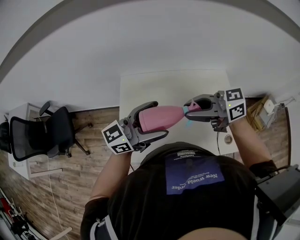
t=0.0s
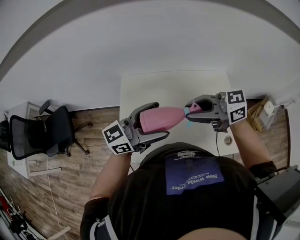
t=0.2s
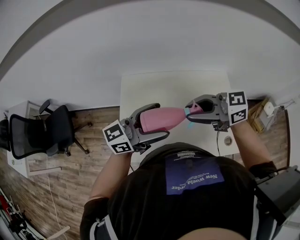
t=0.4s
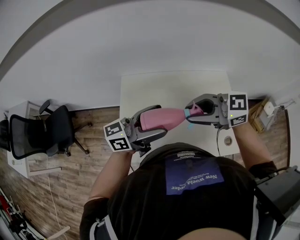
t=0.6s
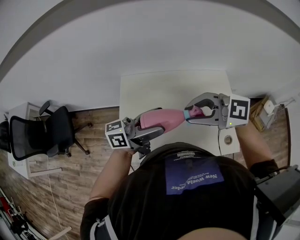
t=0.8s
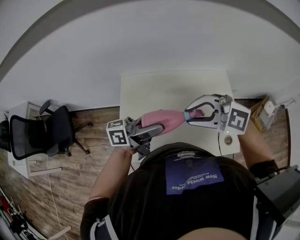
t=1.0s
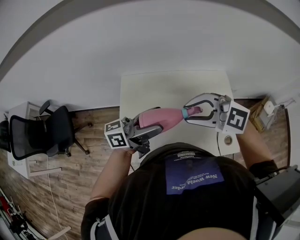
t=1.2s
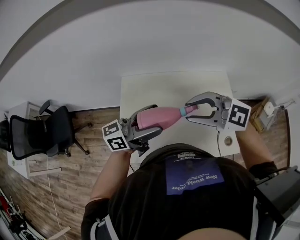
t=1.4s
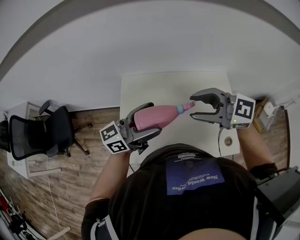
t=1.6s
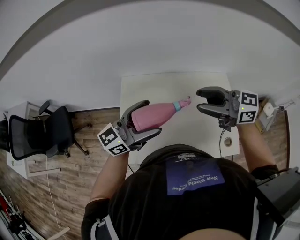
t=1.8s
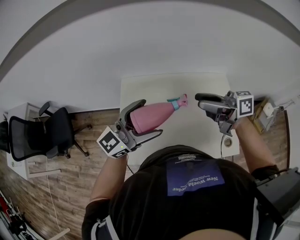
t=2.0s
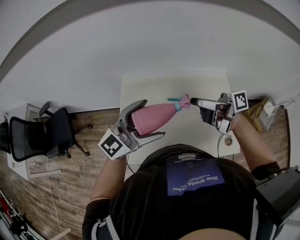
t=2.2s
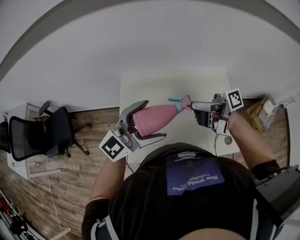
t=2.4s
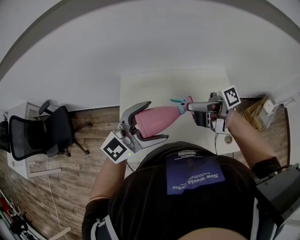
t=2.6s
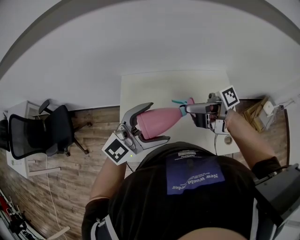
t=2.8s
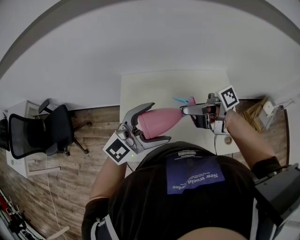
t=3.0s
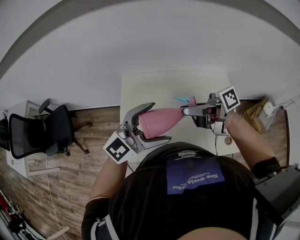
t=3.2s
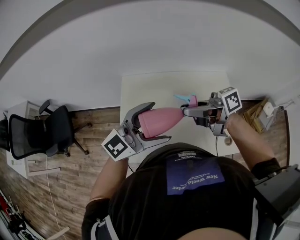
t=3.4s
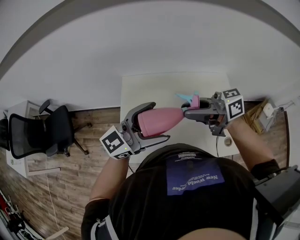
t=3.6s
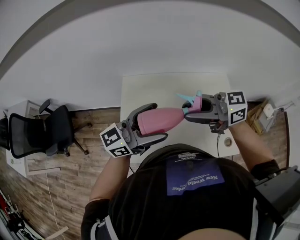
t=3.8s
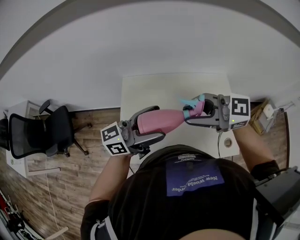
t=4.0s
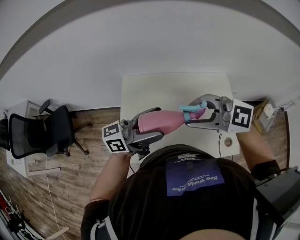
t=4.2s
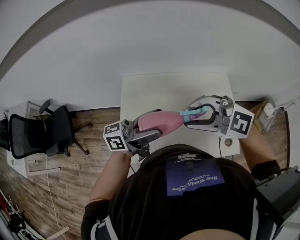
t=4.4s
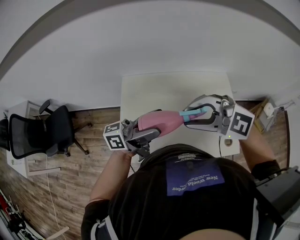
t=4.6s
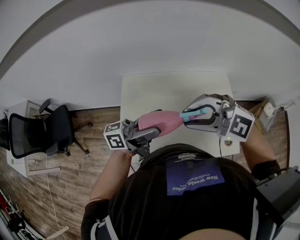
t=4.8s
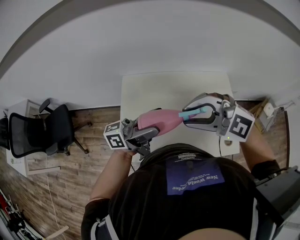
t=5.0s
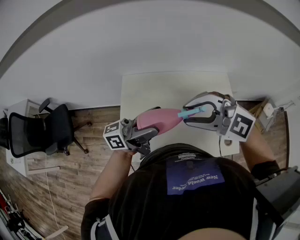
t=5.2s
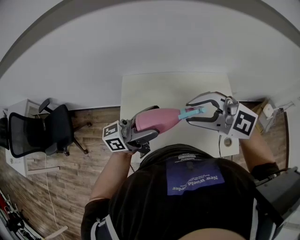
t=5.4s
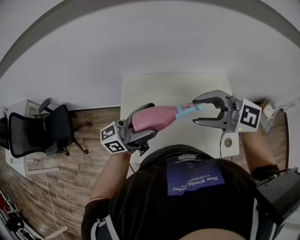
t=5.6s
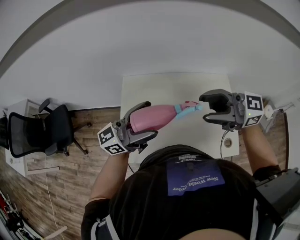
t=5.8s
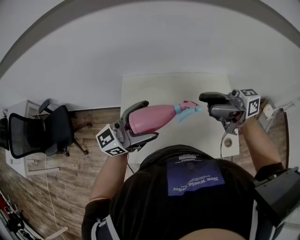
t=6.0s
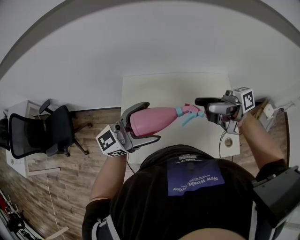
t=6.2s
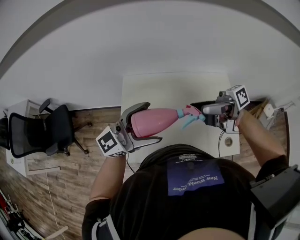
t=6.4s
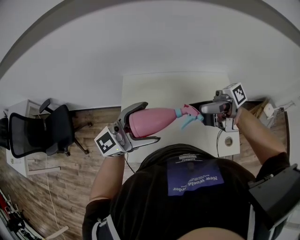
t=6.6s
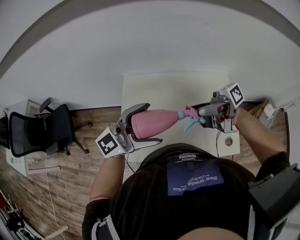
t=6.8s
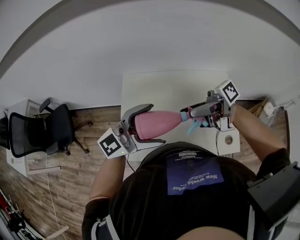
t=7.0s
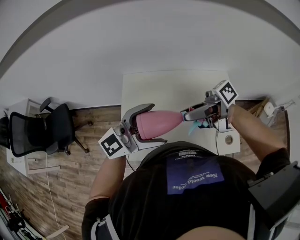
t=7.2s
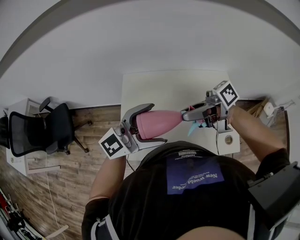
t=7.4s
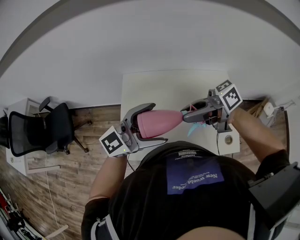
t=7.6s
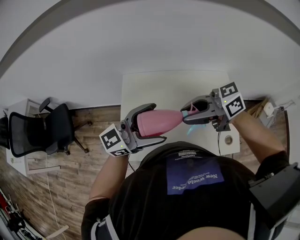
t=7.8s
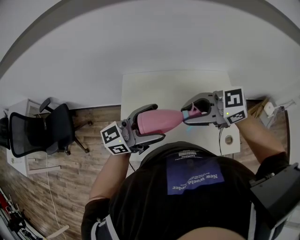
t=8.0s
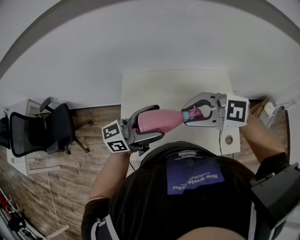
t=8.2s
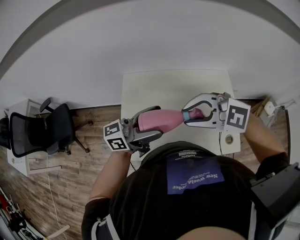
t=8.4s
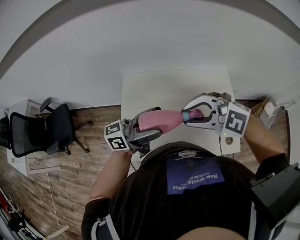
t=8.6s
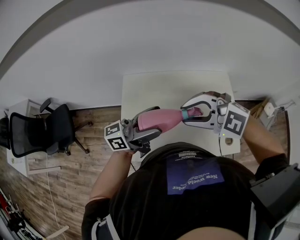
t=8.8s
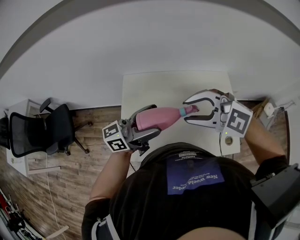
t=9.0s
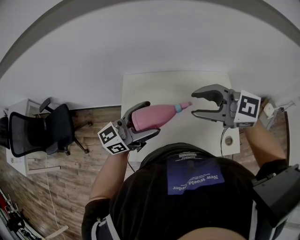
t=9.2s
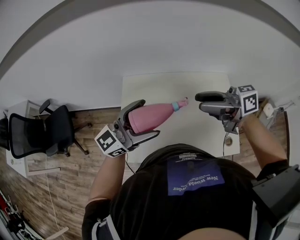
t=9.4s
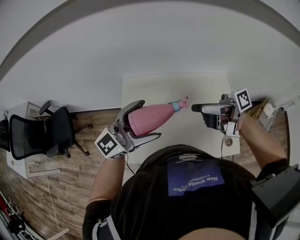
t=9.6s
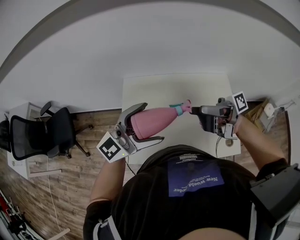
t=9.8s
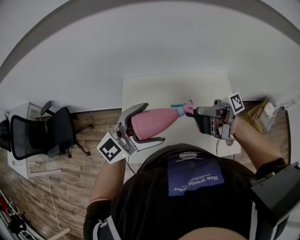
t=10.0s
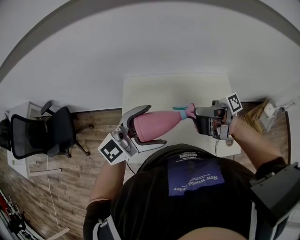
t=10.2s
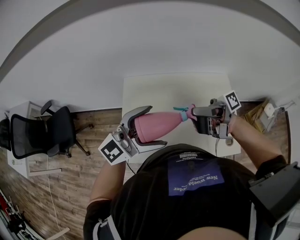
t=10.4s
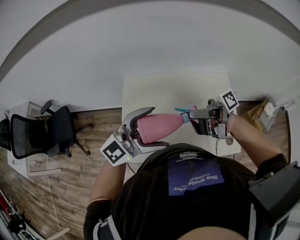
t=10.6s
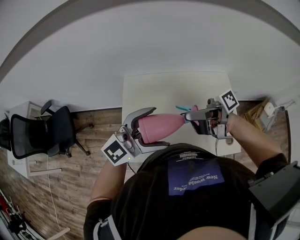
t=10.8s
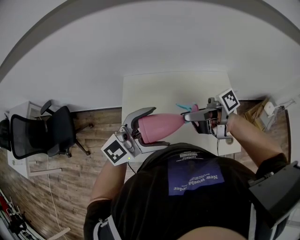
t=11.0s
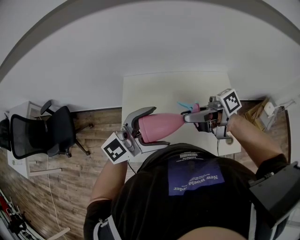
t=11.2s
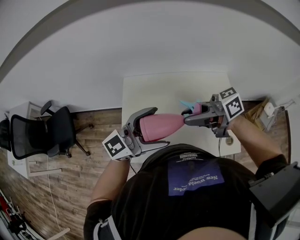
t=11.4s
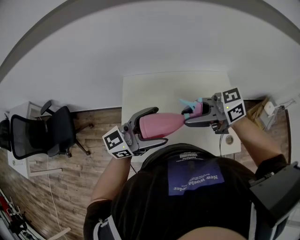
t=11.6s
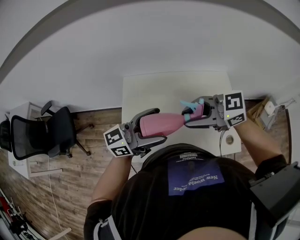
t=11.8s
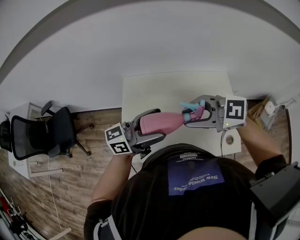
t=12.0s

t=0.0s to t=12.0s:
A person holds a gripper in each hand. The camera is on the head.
t=0.0s to t=1.6s: The right gripper changes its angle by some 30 degrees.
t=1.6s to t=3.0s: The left gripper twists some 50 degrees clockwise, seen from behind, while the right gripper twists approximately 70 degrees clockwise, seen from behind.
t=3.0s to t=4.4s: The left gripper rolls counterclockwise, seen from behind, by roughly 60 degrees, while the right gripper ends up about 5 cm from where it was, and rolls counterclockwise, seen from behind, by roughly 90 degrees.
t=4.4s to t=6.0s: The right gripper shifts by roughly 10 cm, rolls clockwise, seen from behind, by some 60 degrees, and opens its fingers; the left gripper turns by some 30 degrees.
t=6.0s to t=7.6s: The right gripper changes place by some 10 cm, swivels roughly 30 degrees, and closes.
t=7.6s to t=9.0s: The right gripper rolls counterclockwise, seen from behind, by about 70 degrees, while the left gripper rotates approximately 30 degrees.
t=9.0s to t=10.4s: The right gripper rolls clockwise, seen from behind, by about 100 degrees, and opens up, while the left gripper moves about 5 cm, and rotates around the line of its fingers by some 50 degrees, clockwise from behind.
t=10.4s to t=12.0s: The right gripper twists roughly 80 degrees counterclockwise, seen from behind, and closes, while the left gripper rolls counterclockwise, seen from behind, by some 50 degrees.

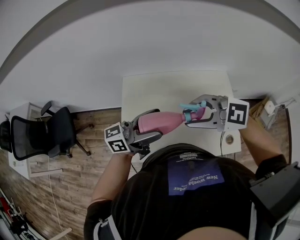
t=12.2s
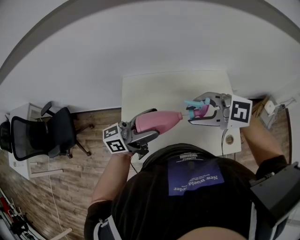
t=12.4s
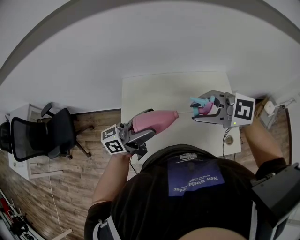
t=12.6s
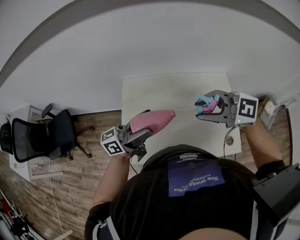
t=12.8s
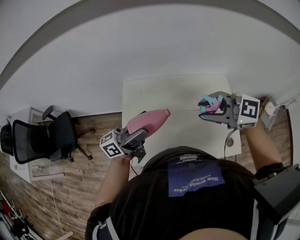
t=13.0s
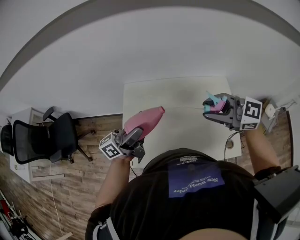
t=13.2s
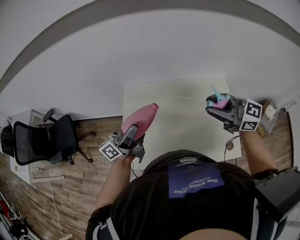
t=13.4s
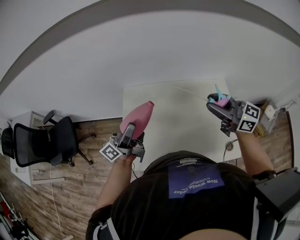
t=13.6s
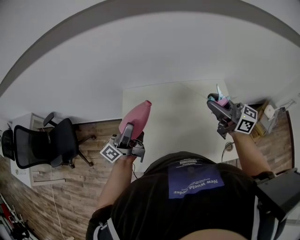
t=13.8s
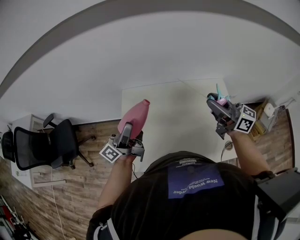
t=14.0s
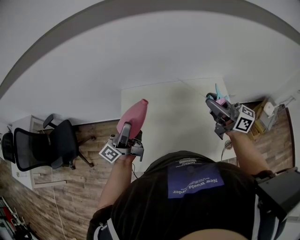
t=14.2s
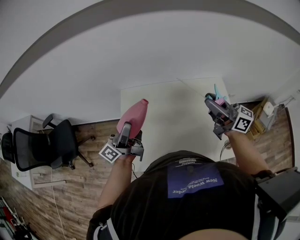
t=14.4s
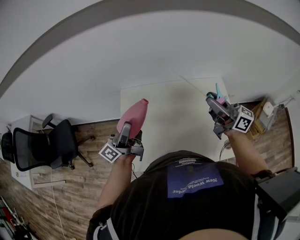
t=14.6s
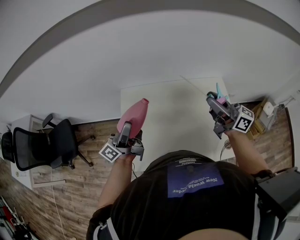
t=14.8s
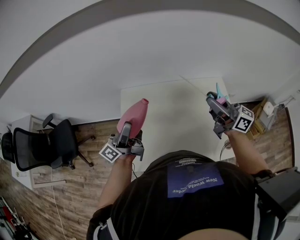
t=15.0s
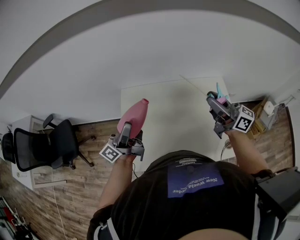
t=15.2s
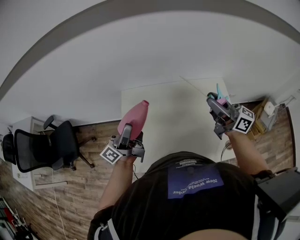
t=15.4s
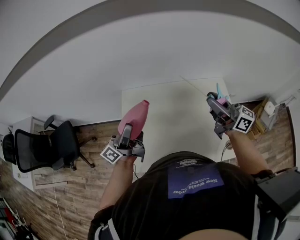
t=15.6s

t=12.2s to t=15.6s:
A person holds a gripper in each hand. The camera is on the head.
t=12.2s to t=13.8s: The left gripper changes place by approximately 10 cm, and changes its angle by roughly 30 degrees; the right gripper moves about 15 cm, and tilts its fingers some 30 degrees upward.
t=13.8s to t=15.6s: The grippers make only small movements.

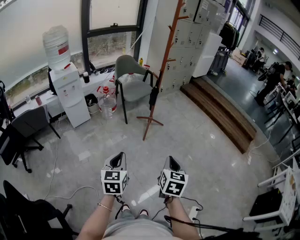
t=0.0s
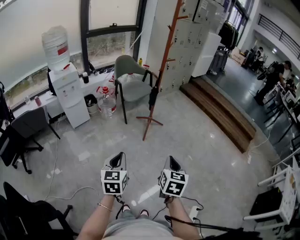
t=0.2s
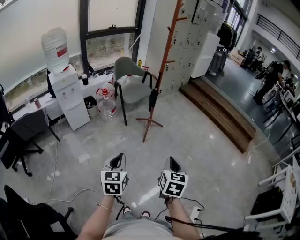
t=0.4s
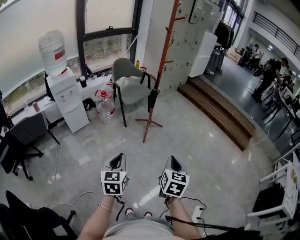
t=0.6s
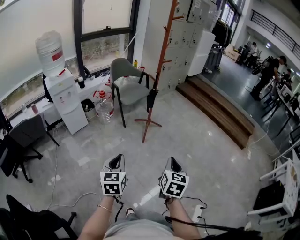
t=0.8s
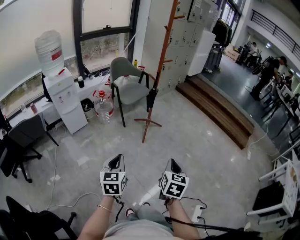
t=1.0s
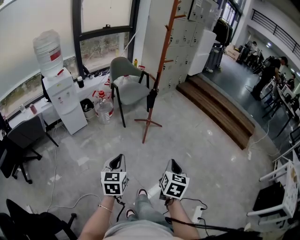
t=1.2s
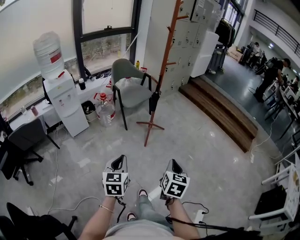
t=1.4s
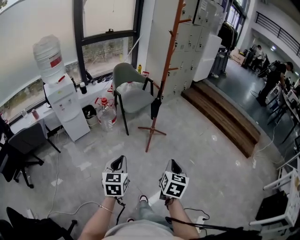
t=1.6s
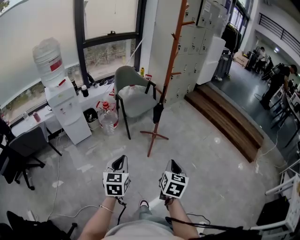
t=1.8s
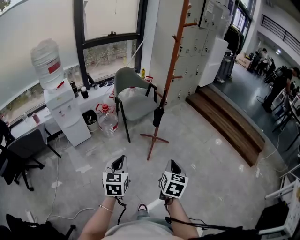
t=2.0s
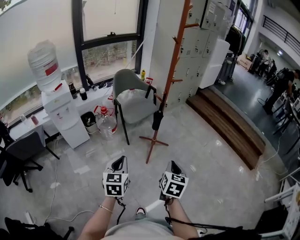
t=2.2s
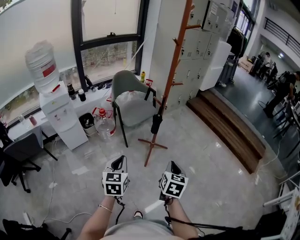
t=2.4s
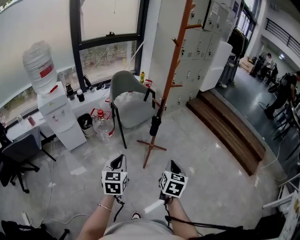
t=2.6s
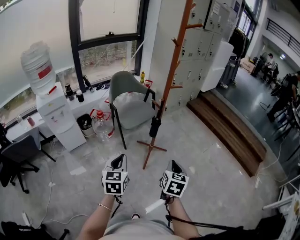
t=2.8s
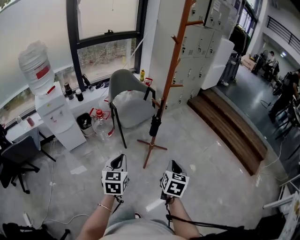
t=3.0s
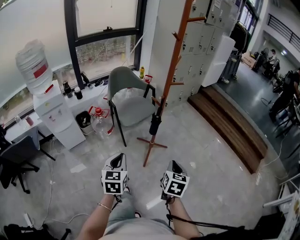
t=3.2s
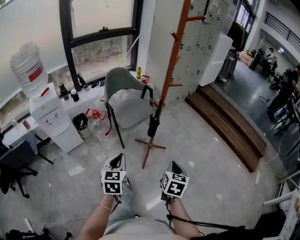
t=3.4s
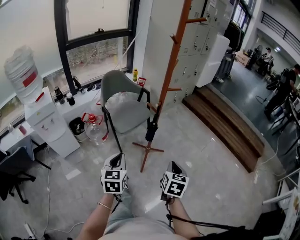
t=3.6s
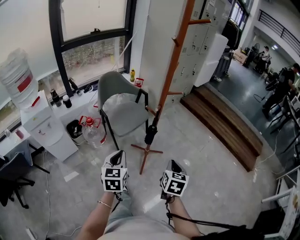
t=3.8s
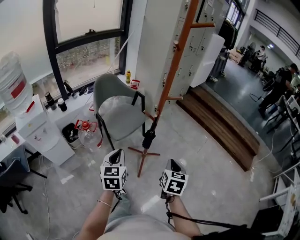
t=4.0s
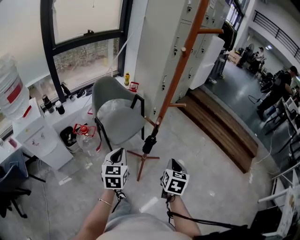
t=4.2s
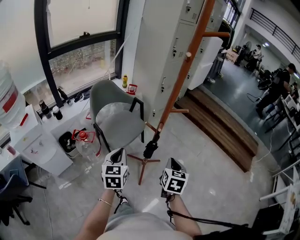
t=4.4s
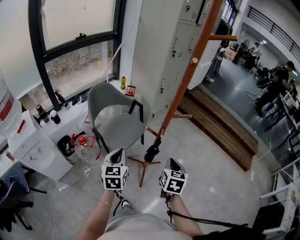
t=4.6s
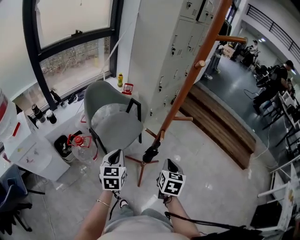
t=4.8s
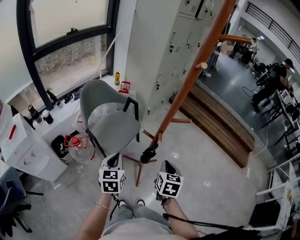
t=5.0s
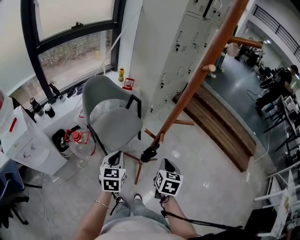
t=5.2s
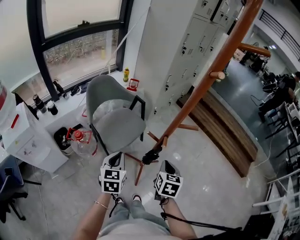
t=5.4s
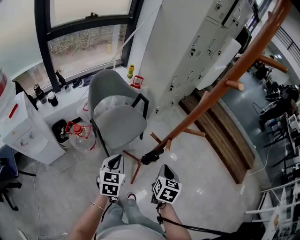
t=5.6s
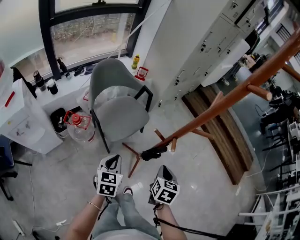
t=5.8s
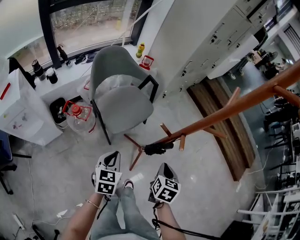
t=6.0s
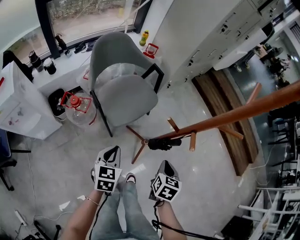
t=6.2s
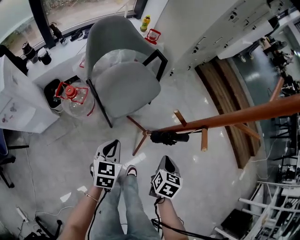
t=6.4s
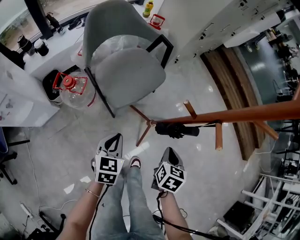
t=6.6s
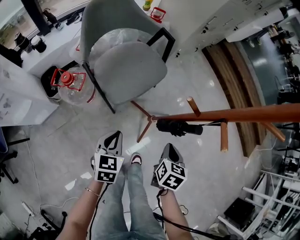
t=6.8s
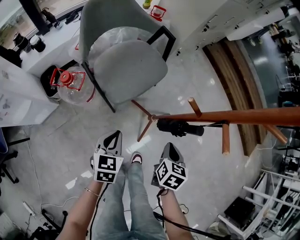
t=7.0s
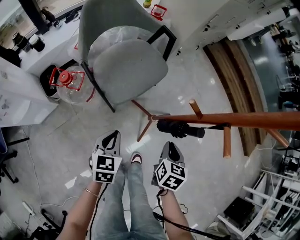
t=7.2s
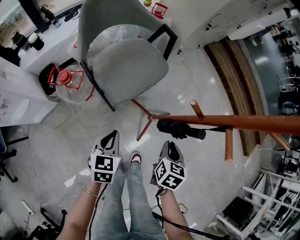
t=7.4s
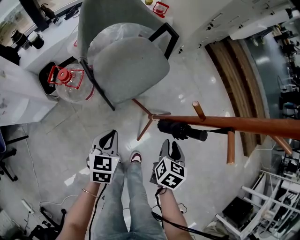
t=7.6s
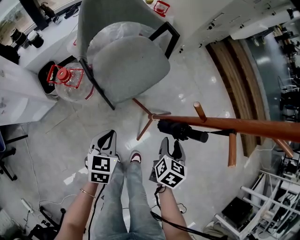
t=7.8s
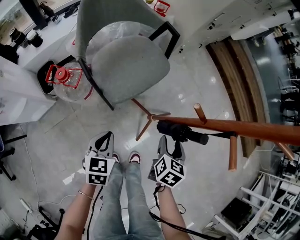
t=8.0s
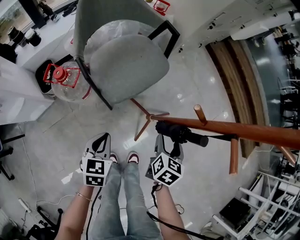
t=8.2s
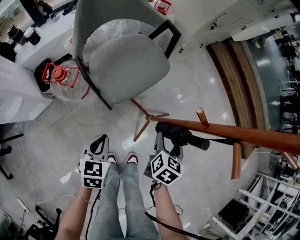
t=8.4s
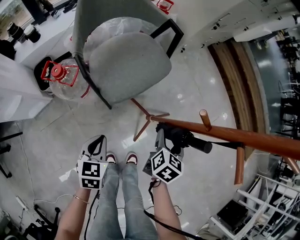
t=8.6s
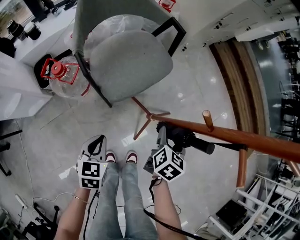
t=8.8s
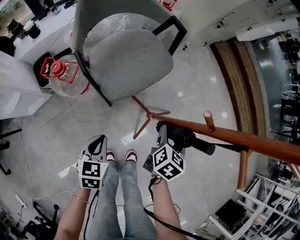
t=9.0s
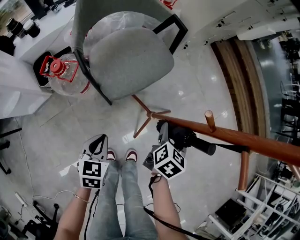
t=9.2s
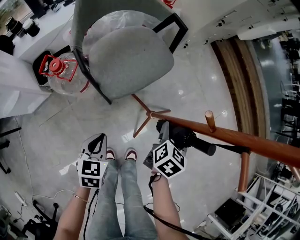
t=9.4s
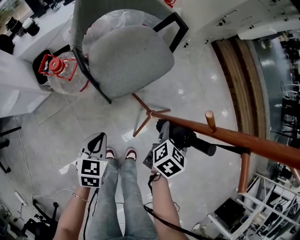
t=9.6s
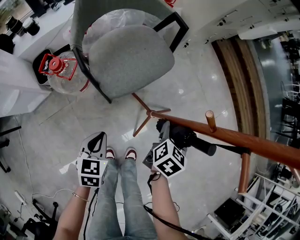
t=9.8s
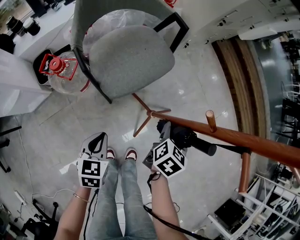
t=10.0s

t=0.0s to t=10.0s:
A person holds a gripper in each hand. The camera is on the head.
t=0.0s to t=1.4s: Both grippers move forward, approximately 10 cm.
t=1.4s to t=2.8s: Both grippers move forward, approximately 30 cm.
t=2.8s to t=4.2s: Both grippers move forward, about 20 cm.
t=4.2s to t=5.8s: The right gripper moves forward, downward and to the left, roughly 15 cm. The left gripper travels downward and forward by about 15 cm.
t=5.8s to t=7.2s: The two grippers go some 20 cm downward.
t=7.2s to t=8.6s: The left gripper shifts some 5 cm downward. The right gripper travels forward by approximately 5 cm, and opens its fingers.
t=8.6s to t=10.0s: The grippers move only a little.
